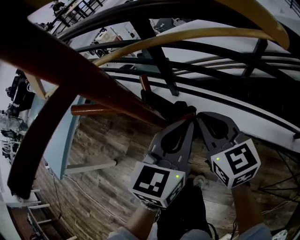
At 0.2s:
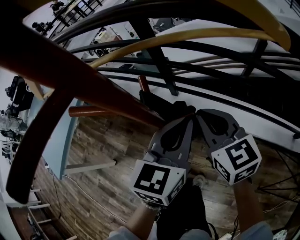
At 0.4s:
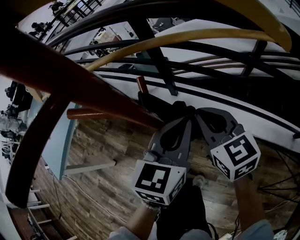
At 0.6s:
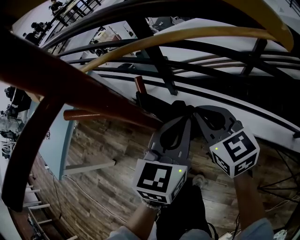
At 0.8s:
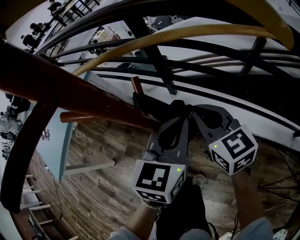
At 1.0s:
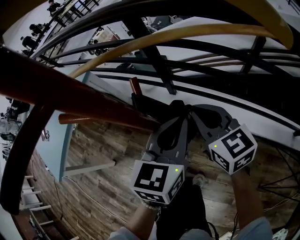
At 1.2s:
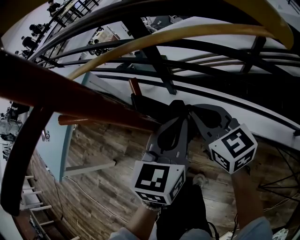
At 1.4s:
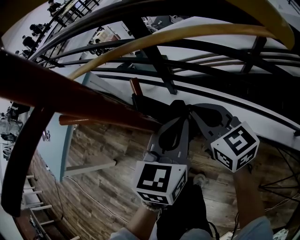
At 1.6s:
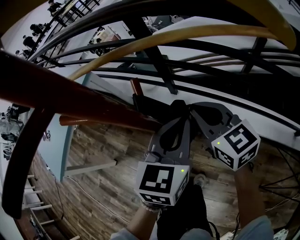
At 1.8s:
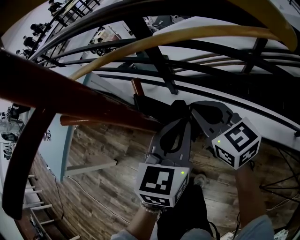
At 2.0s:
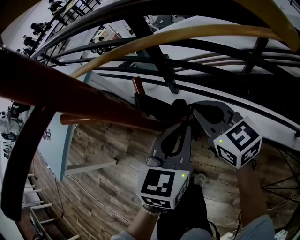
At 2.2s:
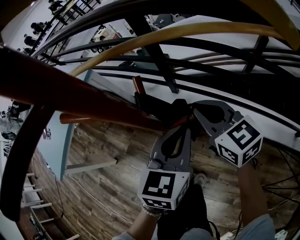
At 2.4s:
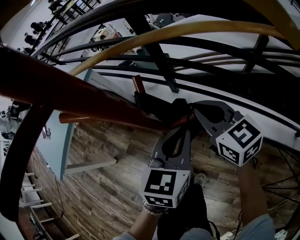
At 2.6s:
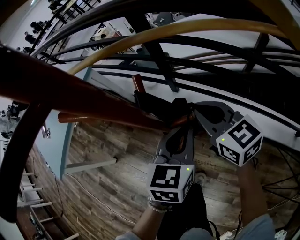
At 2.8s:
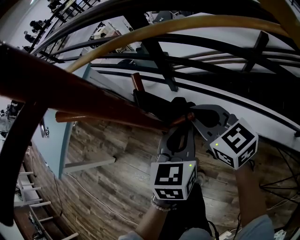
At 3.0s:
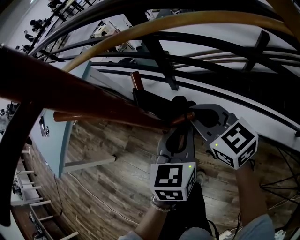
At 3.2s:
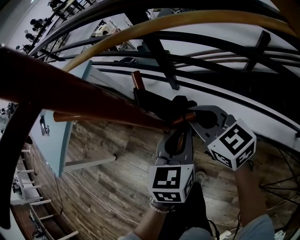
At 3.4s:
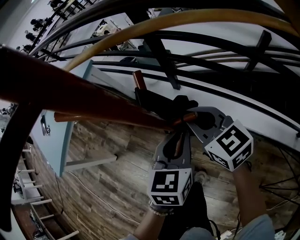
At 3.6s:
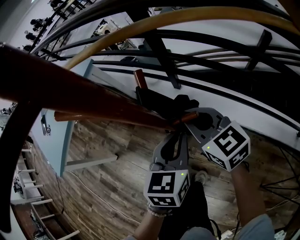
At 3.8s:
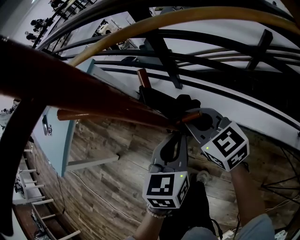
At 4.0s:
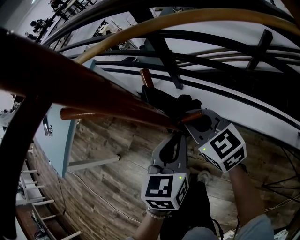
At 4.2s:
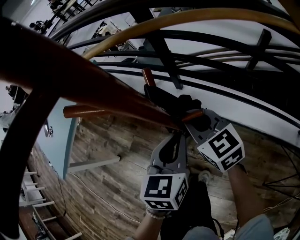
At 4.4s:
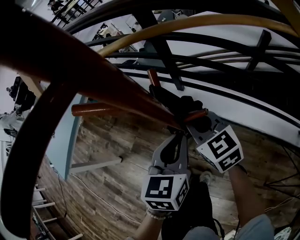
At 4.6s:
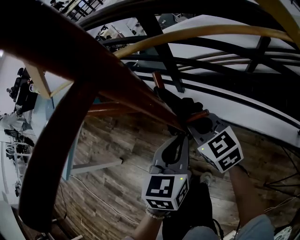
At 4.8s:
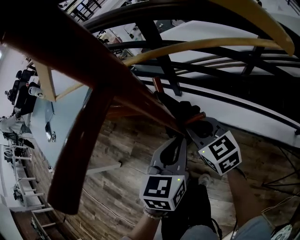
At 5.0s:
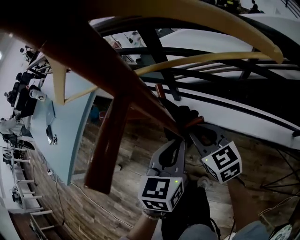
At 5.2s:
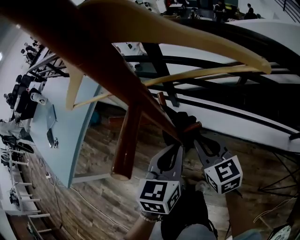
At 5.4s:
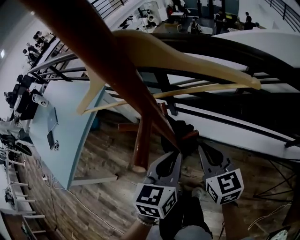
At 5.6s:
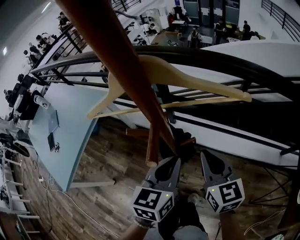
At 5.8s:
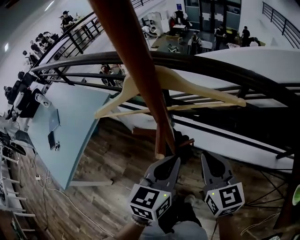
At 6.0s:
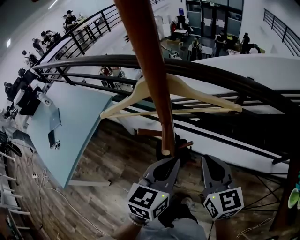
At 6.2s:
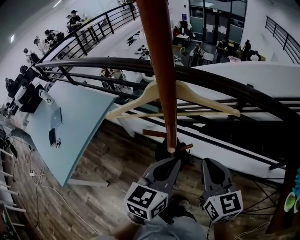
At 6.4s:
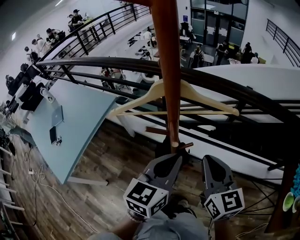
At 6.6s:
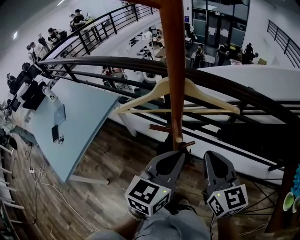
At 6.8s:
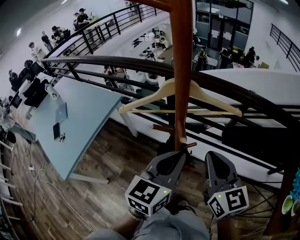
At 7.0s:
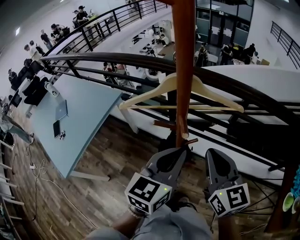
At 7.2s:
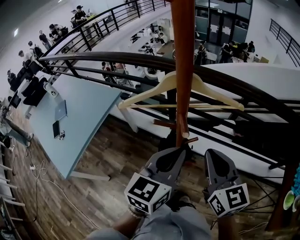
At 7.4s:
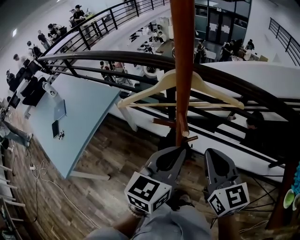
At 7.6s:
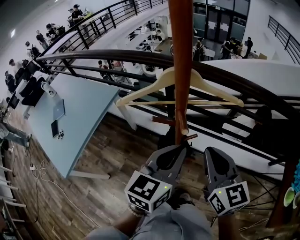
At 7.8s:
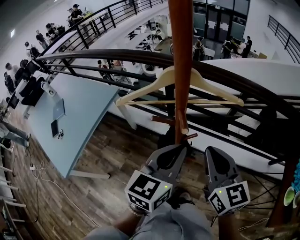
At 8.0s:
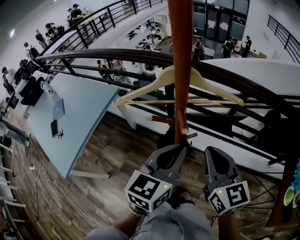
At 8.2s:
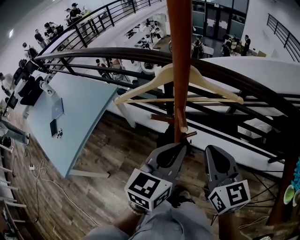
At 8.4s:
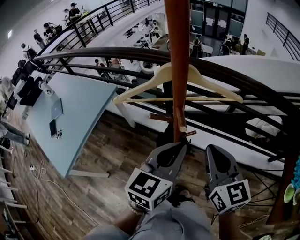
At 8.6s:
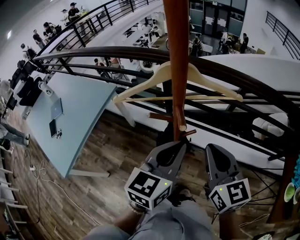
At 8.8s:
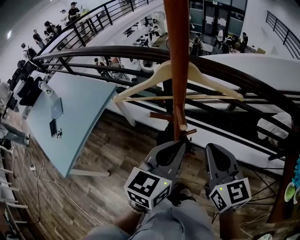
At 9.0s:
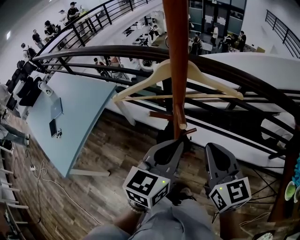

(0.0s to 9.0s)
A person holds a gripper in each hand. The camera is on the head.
0.0s - 1.6s: There are only small adjustments of the grippers.
1.6s - 3.0s: The left gripper heads downward, covering roughly 5 cm.
3.0s - 4.4s: The right gripper changes place by about 5 cm; the left gripper moves to the left, approximately 5 cm.
4.4s - 6.0s: The right gripper shifts some 25 cm upward and backward, and turns by roughly 30 degrees. Meanwhile the left gripper heads upward, covering roughly 20 cm, and changes its angle by some 20 degrees.
6.0s - 7.6s: The two grippers go approximately 5 cm upward.
7.6s - 9.0s: Both grippers stay about where they are.

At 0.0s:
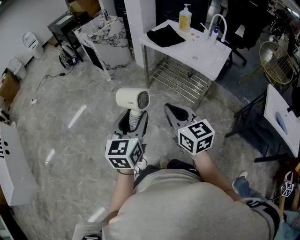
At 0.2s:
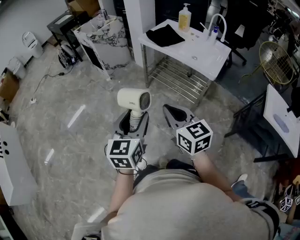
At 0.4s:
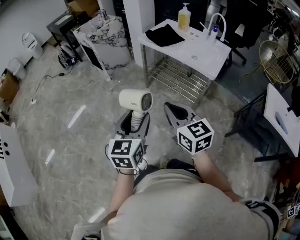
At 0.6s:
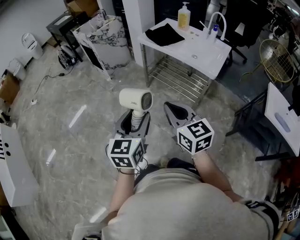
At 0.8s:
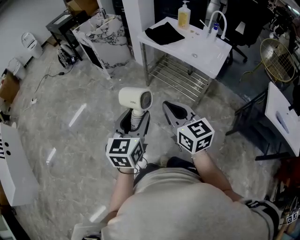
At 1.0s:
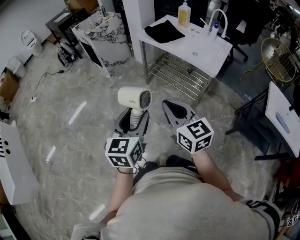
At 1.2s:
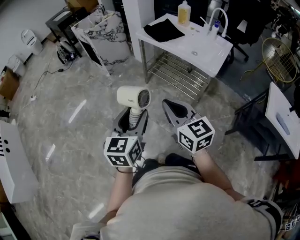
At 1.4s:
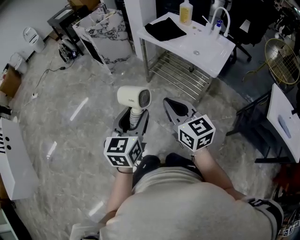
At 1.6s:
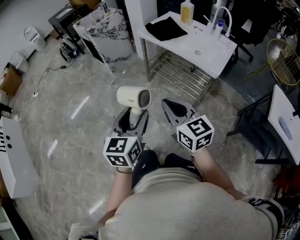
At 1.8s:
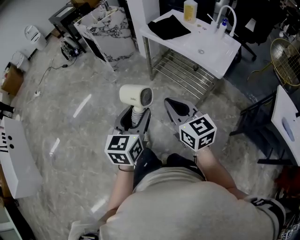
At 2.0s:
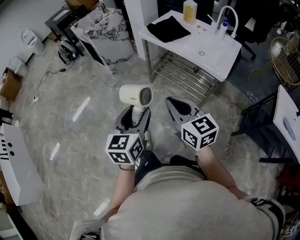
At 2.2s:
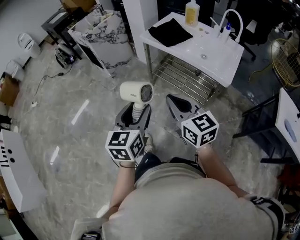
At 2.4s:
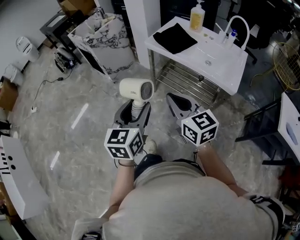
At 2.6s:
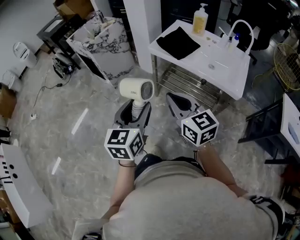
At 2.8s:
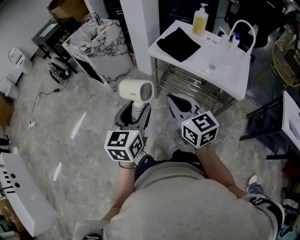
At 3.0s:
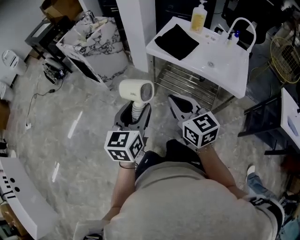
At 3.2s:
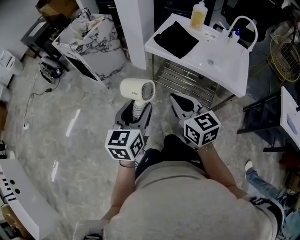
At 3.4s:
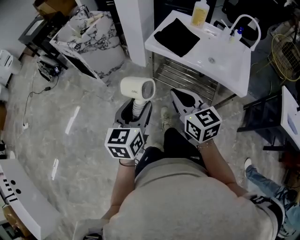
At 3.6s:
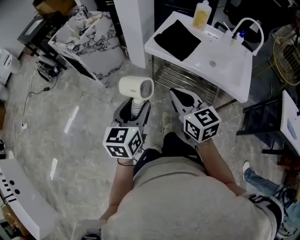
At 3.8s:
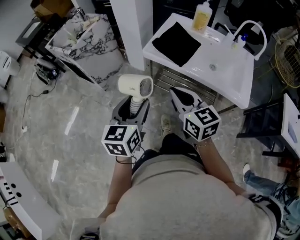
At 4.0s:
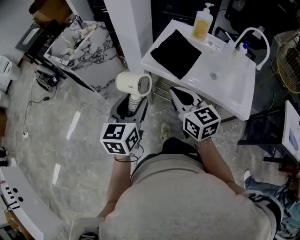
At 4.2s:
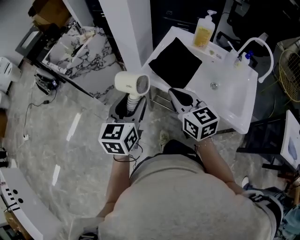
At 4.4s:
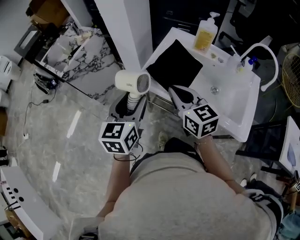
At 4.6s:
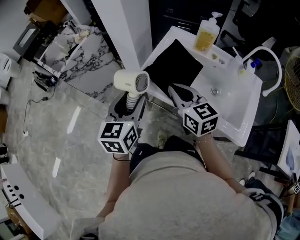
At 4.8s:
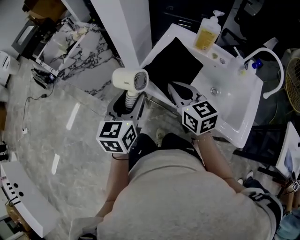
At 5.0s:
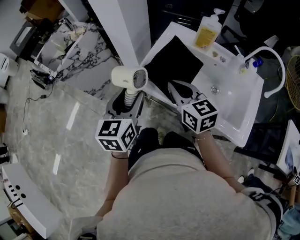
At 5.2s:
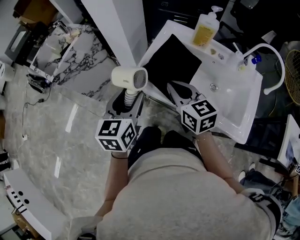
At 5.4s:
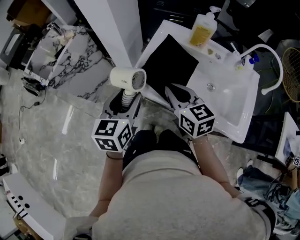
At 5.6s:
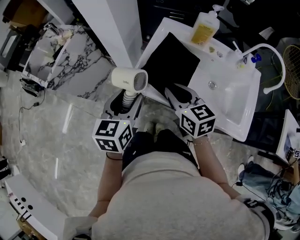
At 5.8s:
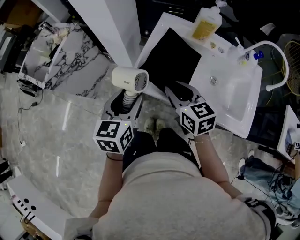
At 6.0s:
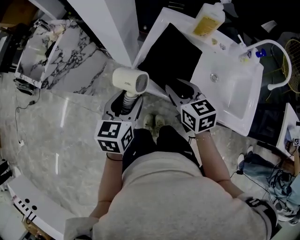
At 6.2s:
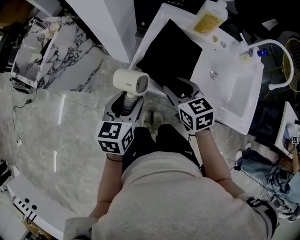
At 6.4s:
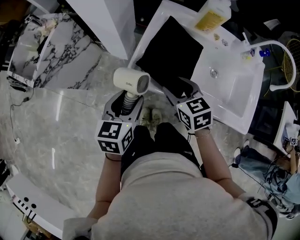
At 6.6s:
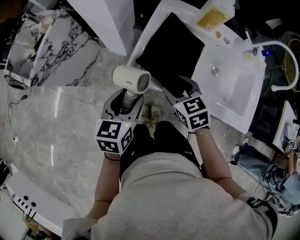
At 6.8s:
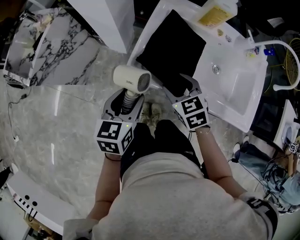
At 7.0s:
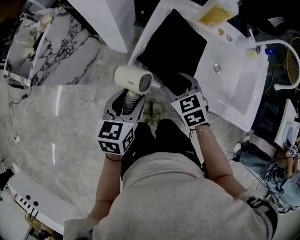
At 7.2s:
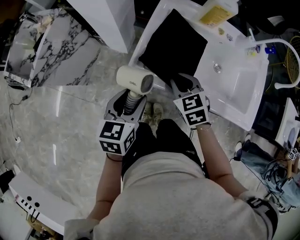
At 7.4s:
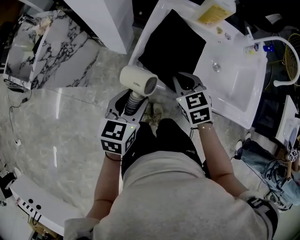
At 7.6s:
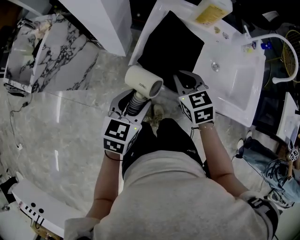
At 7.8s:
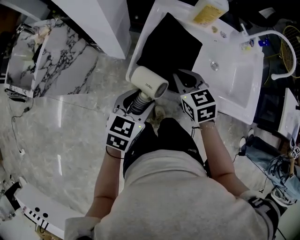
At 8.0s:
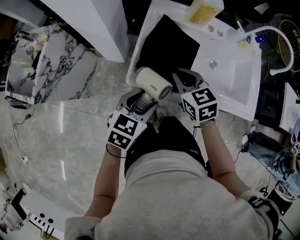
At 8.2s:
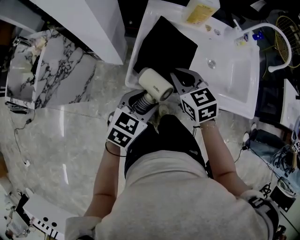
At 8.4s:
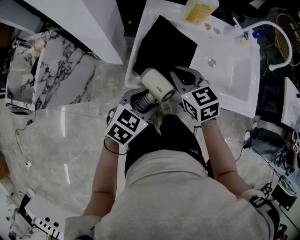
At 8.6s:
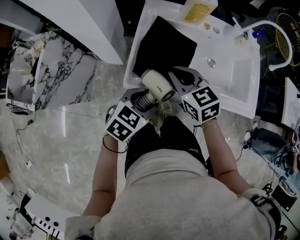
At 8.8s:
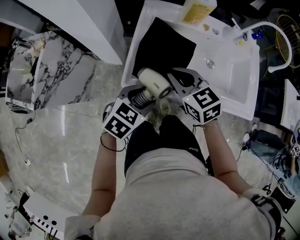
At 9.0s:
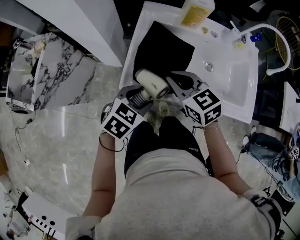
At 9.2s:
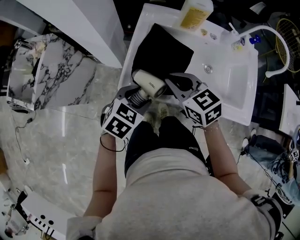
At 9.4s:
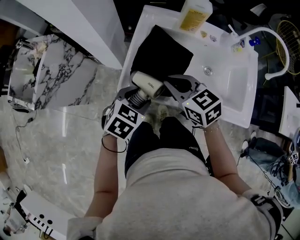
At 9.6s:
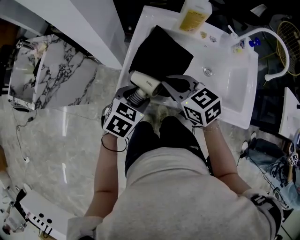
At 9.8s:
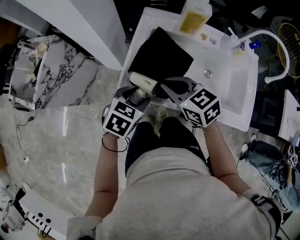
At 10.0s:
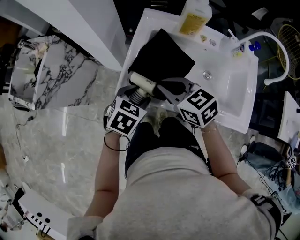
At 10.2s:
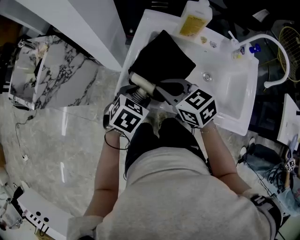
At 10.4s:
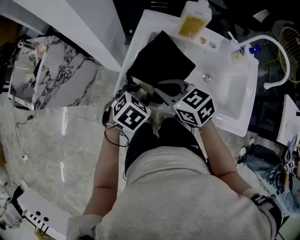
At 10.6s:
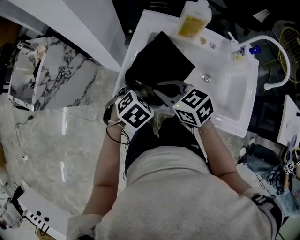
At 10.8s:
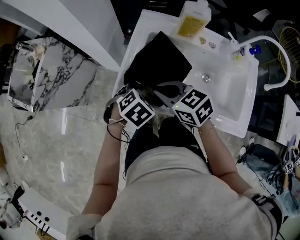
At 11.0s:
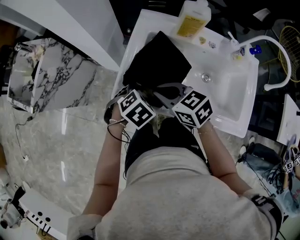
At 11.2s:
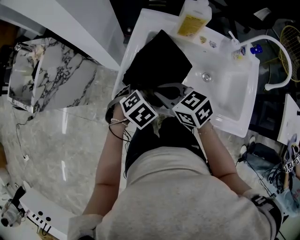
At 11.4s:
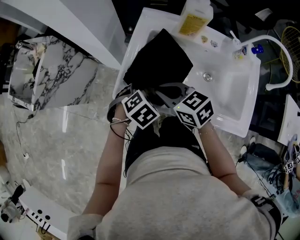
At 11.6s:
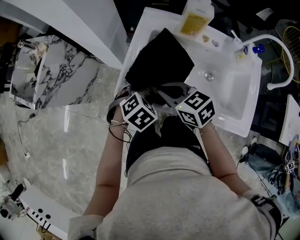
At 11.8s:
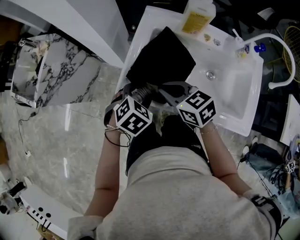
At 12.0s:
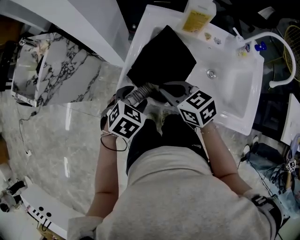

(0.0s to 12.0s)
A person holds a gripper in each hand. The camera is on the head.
0.0s - 1.6s: The right gripper moves some 5 cm. The left gripper ends up about 5 cm from where it was.
1.6s - 3.0s: The two grippers go some 35 cm forward and to the left.
3.0s - 4.4s: Both grippers travel together forward, roughly 30 cm.
4.4s - 6.0s: The left gripper travels forward and downward by about 10 cm. Meanwhile the right gripper travels downward and forward by some 10 cm, and opens up.
6.0s - 7.6s: The left gripper moves approximately 5 cm, while the right gripper closes its fingers.
7.6s - 9.0s: The right gripper travels upward by about 5 cm. The left gripper ends up roughly 5 cm from where it was, and swivels about 30 degrees.
9.0s - 10.4s: The left gripper ends up approximately 5 cm from where it was.
10.4s - 12.0s: The grippers make only small movements.

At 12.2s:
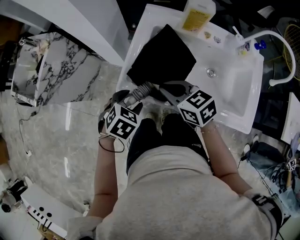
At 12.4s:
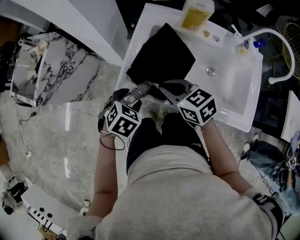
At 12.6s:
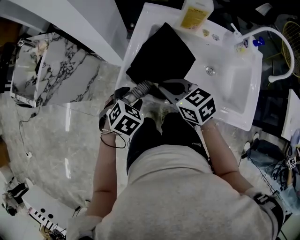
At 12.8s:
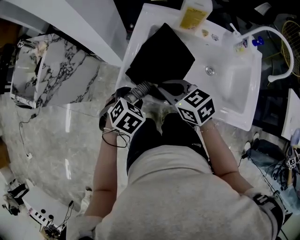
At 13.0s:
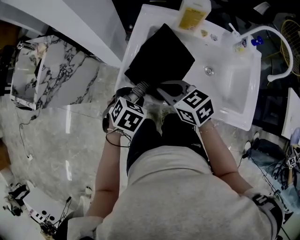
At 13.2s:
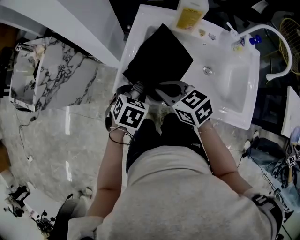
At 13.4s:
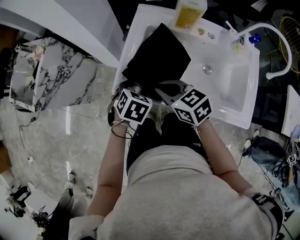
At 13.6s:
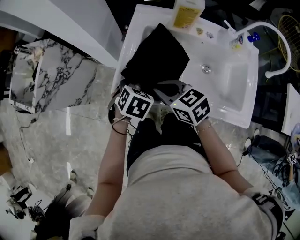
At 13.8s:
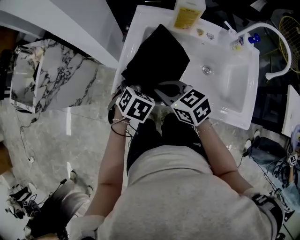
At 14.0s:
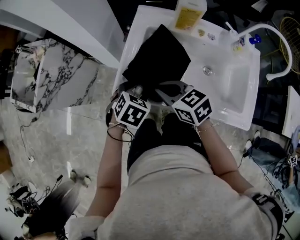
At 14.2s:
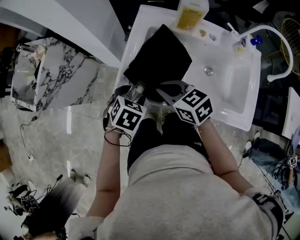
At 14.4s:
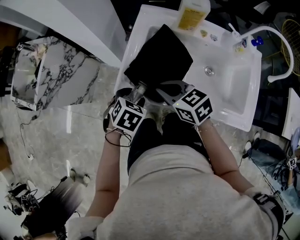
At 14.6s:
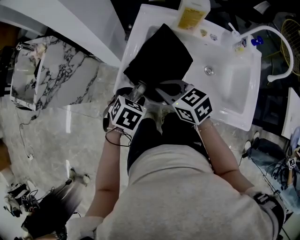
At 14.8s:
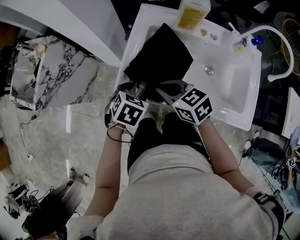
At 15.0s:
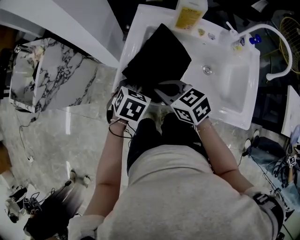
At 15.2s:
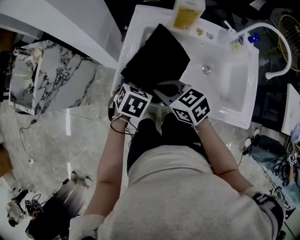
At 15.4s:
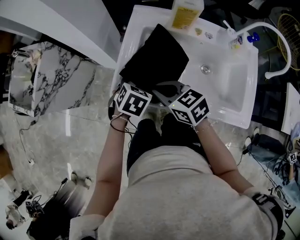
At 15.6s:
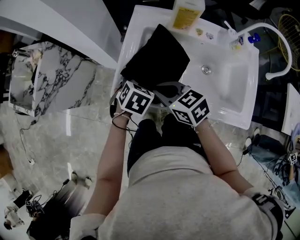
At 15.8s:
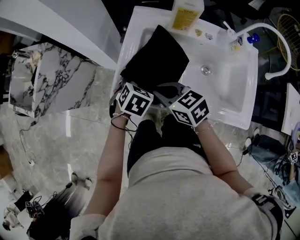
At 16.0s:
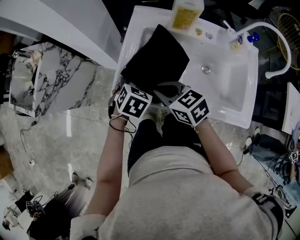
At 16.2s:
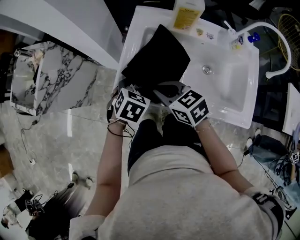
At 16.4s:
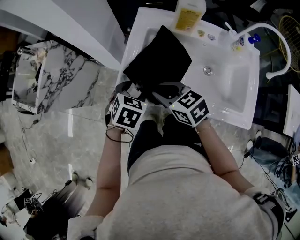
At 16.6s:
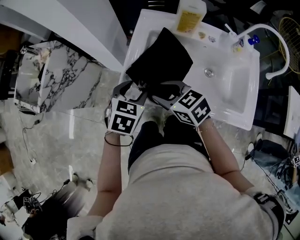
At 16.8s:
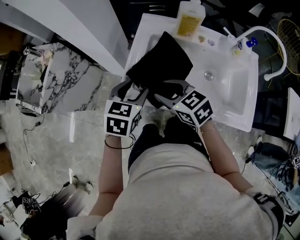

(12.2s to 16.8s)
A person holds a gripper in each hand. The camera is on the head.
12.2s - 13.8s: The left gripper moves to the right, approximately 5 cm.
13.8s - 15.2s: The grippers make only small movements.
15.2s - 16.8s: The left gripper heads upward, covering approximately 10 cm, and rotates about 20 degrees. The right gripper opens.
